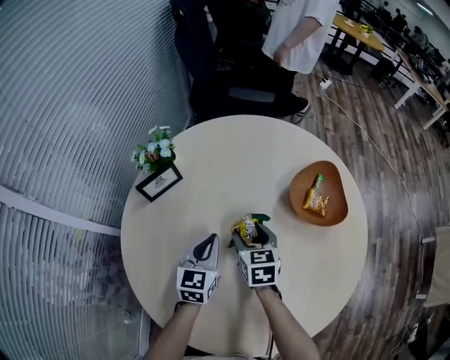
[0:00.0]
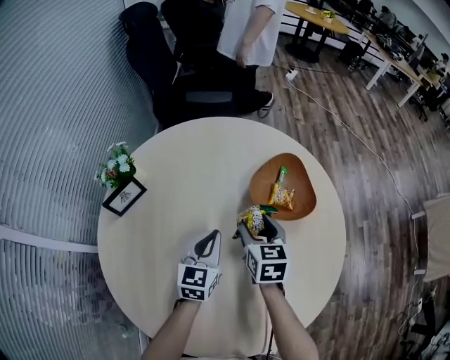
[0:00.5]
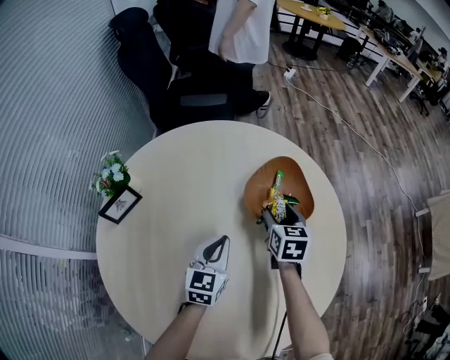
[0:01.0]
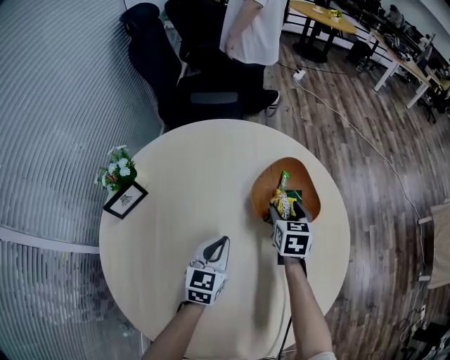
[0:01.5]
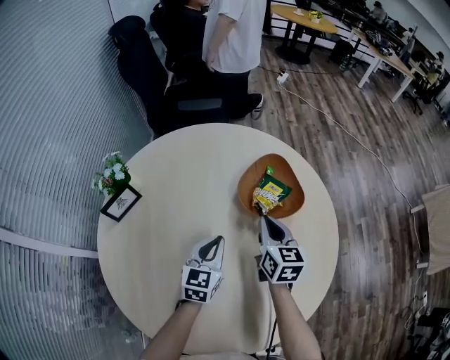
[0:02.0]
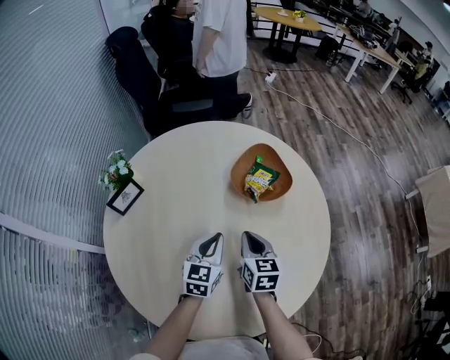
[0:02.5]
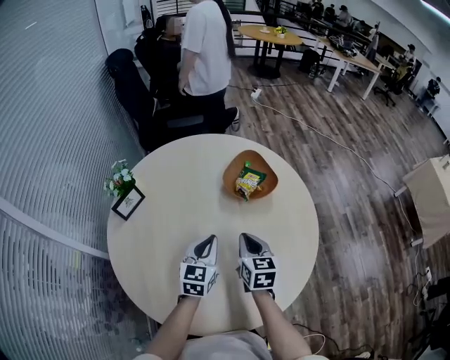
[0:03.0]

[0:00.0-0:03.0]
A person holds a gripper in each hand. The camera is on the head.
0:00.0 to 0:01.5: The right gripper travels to the right and forward by some 25 cm, and changes its angle by approximately 20 degrees. Meanwhile the left gripper goes roughly 15 cm to the right.
0:01.5 to 0:03.0: The right gripper travels backward and upward by roughly 25 cm, and closes up. The left gripper heads backward and upward, covering approximately 15 cm.

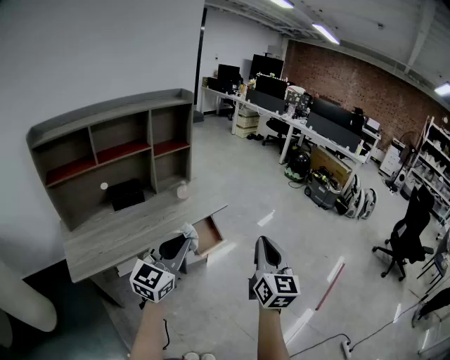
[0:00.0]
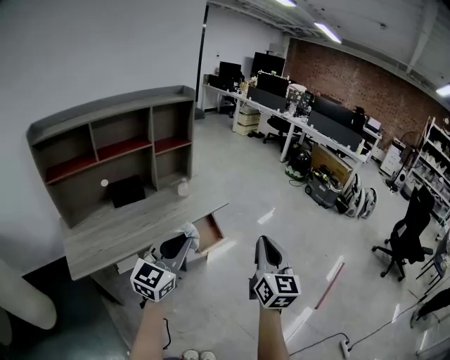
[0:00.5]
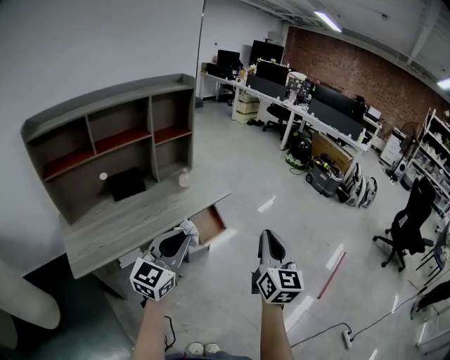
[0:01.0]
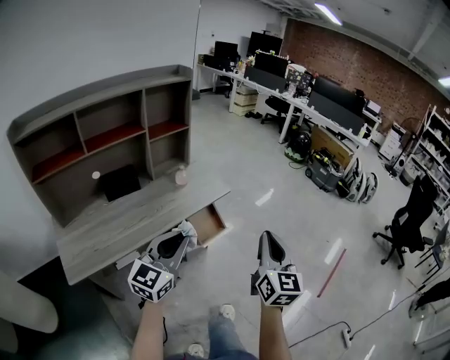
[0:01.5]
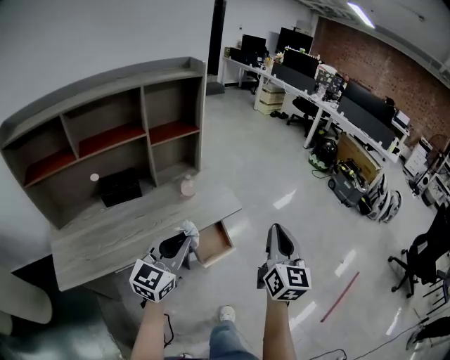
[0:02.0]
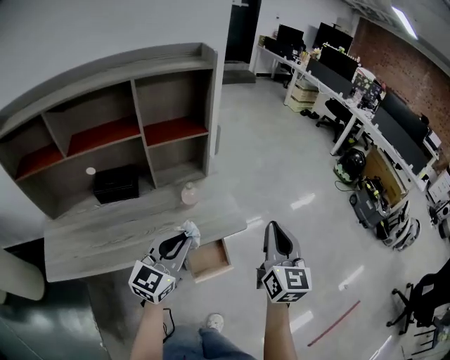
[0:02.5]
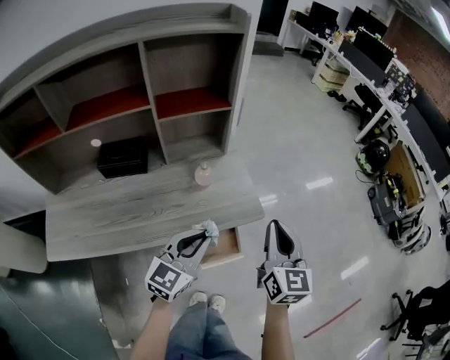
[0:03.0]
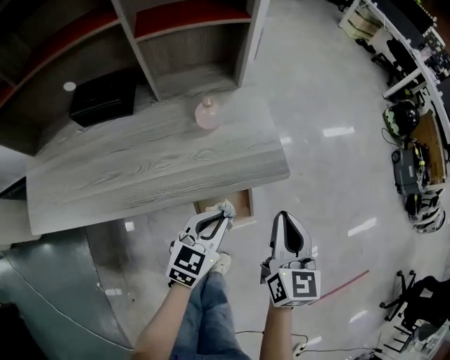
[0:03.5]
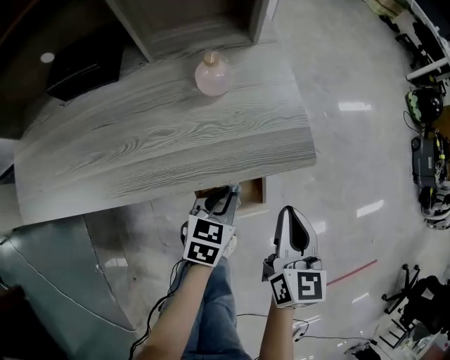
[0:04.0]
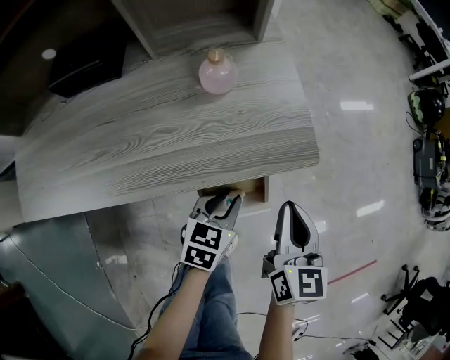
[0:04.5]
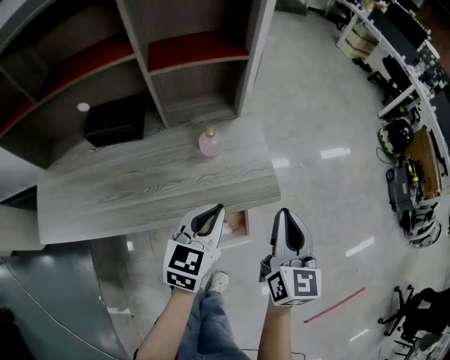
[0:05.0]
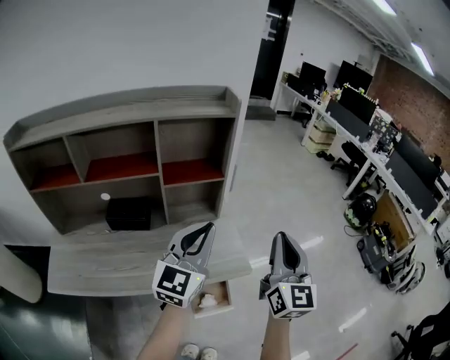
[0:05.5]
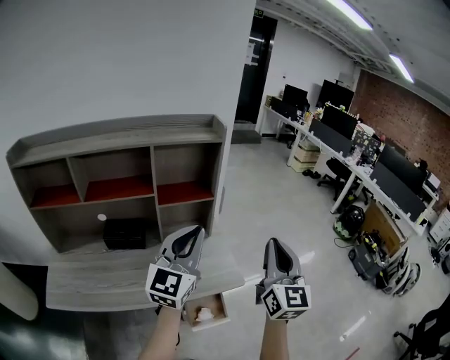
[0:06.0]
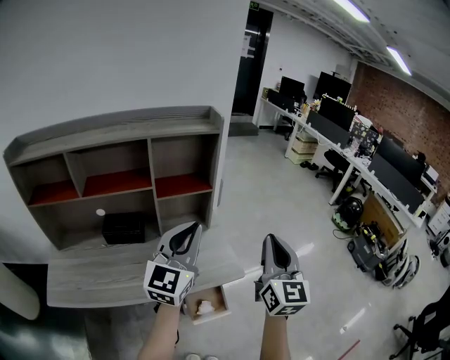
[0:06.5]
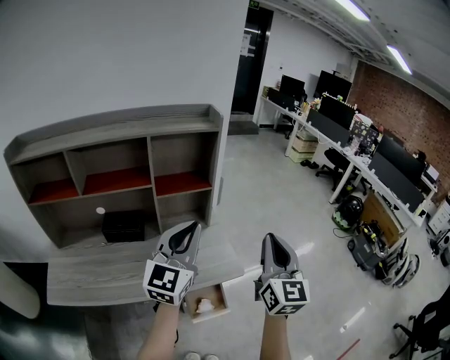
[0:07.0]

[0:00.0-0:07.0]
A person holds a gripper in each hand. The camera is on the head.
0:00.0 to 0:02.0: The right gripper shifts some 25 cm forward. The left gripper travels forward and downward by some 20 cm.
0:02.0 to 0:03.5: The two grippers go about 30 cm downward and forward. The left gripper swivels some 30 degrees. The right gripper rotates approximately 30 degrees.
0:03.5 to 0:05.0: The left gripper moves upward and forward, approximately 15 cm. The right gripper goes roughly 10 cm upward.
0:05.0 to 0:07.0: The two grippers go roughly 30 cm upward. The left gripper angles its fingers upward, by about 30 degrees. Meanwhile the right gripper turns by some 20 degrees.

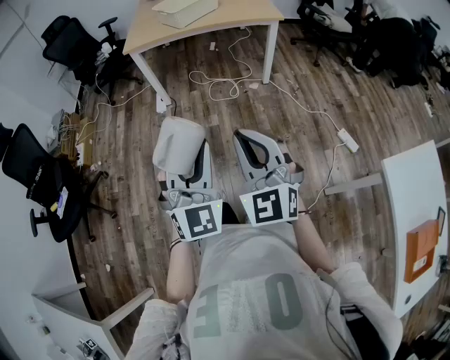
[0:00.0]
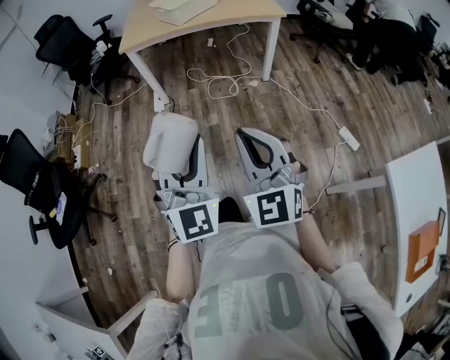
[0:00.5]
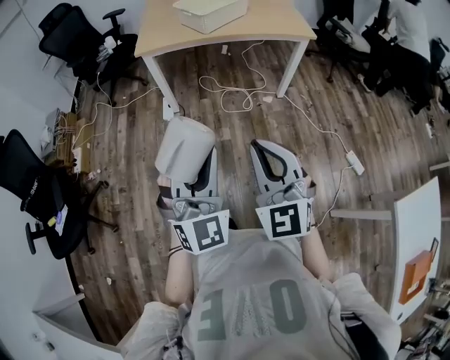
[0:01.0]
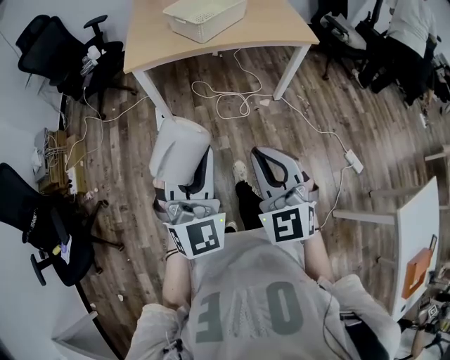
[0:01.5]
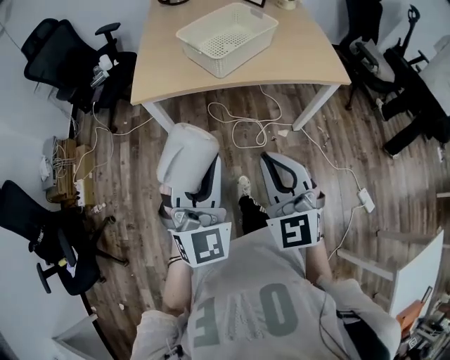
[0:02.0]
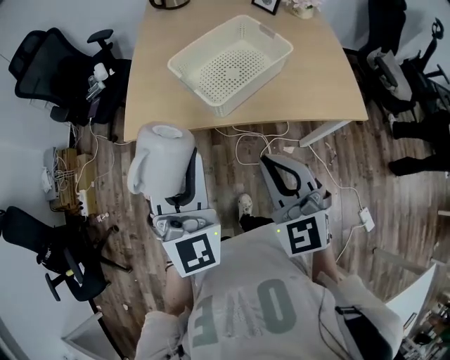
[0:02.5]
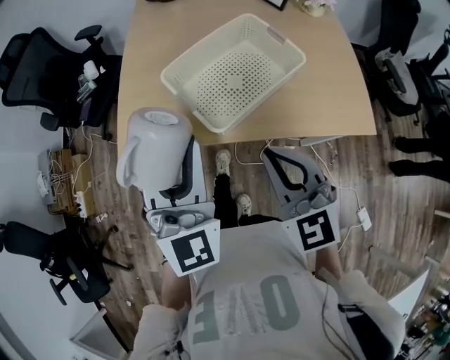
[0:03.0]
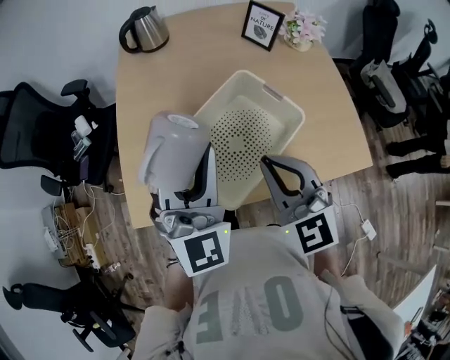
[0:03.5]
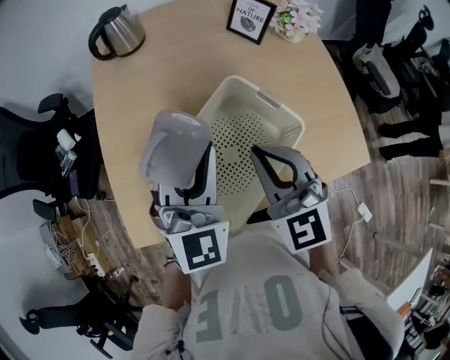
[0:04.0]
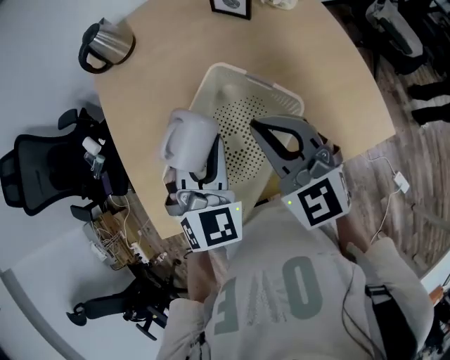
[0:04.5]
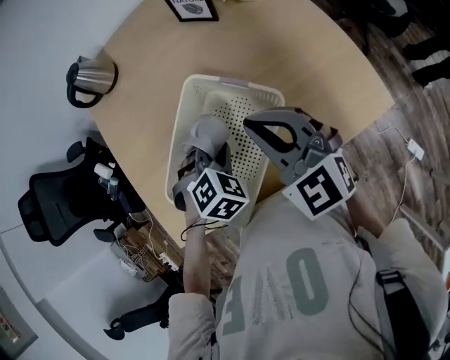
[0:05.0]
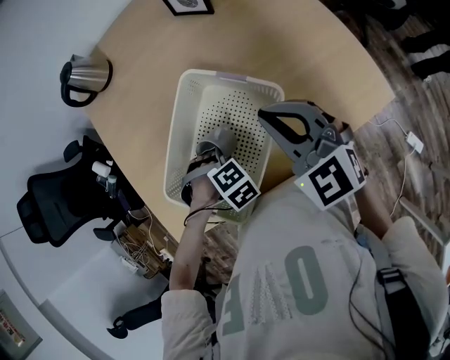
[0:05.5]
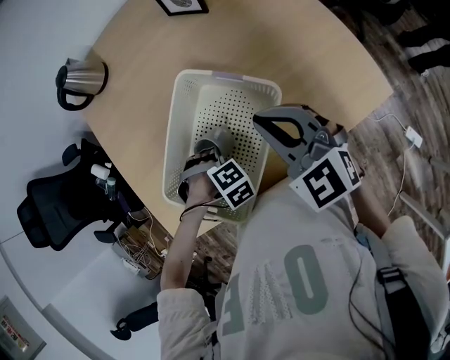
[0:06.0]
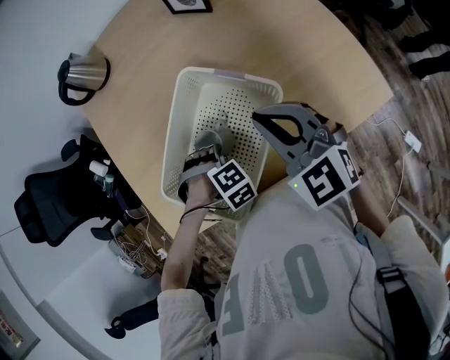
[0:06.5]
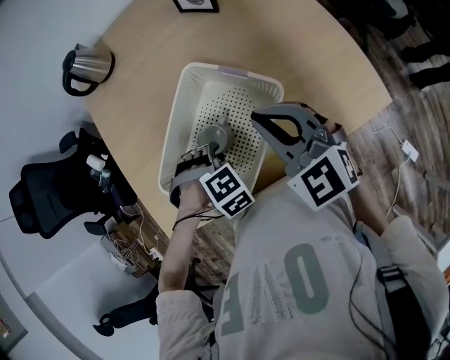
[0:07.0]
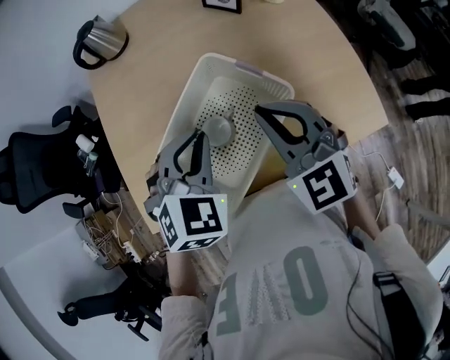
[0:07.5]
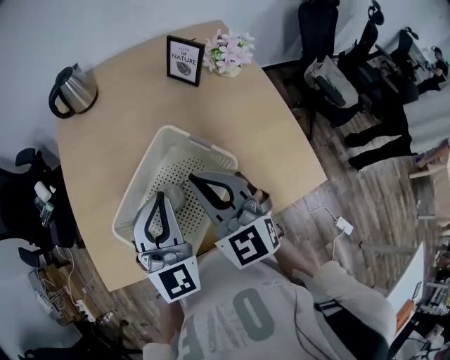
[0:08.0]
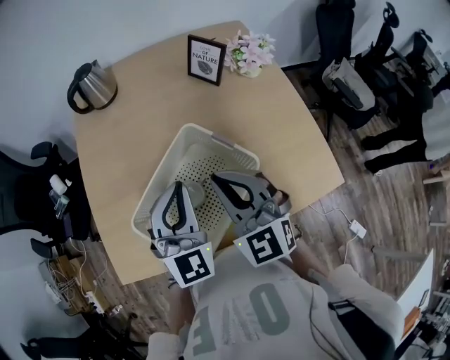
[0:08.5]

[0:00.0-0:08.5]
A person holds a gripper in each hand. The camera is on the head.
0:00.0 to 0:02.0: Both grippers are carried forward, approximately 50 cm.
0:02.0 to 0:04.0: The two grippers travel together, forward, some 60 cm.
0:04.0 to 0:06.5: The left gripper heads downward, covering roughly 30 cm, and points its fingers roughly 70 degrees further downward; the right gripper changes place by approximately 10 cm.
0:06.5 to 0:08.5: The right gripper goes about 5 cm upward, while the left gripper moves upward, some 25 cm, and points its fingers approximately 70 degrees further upward.

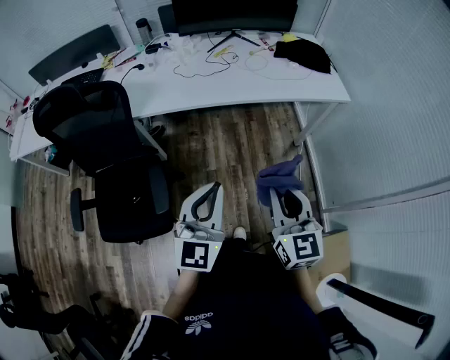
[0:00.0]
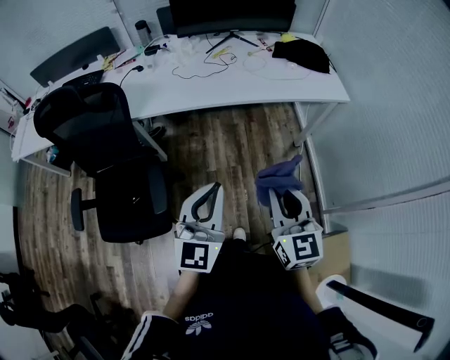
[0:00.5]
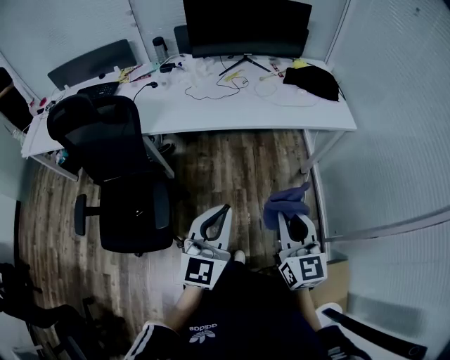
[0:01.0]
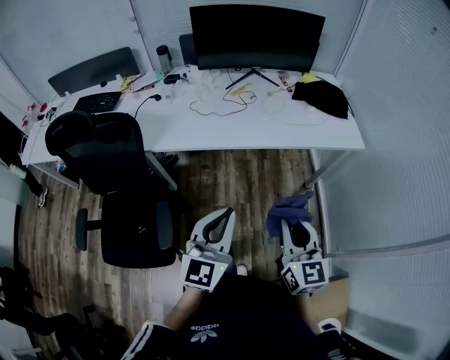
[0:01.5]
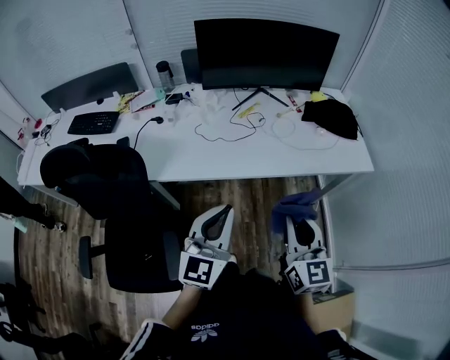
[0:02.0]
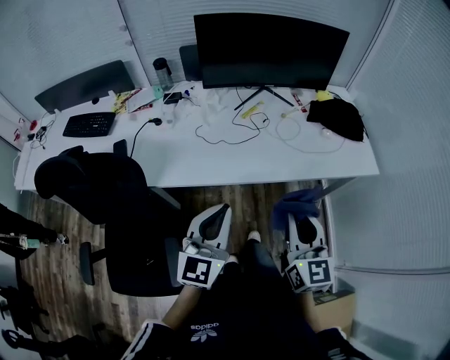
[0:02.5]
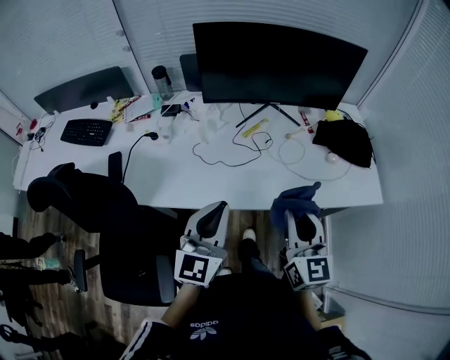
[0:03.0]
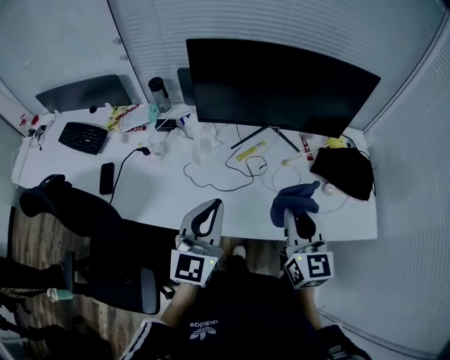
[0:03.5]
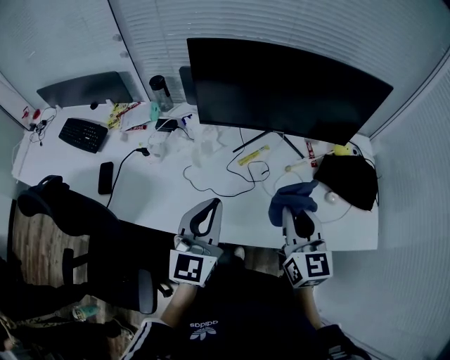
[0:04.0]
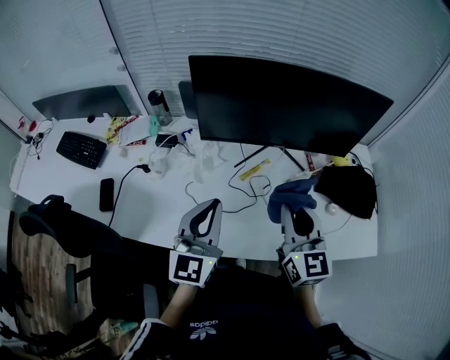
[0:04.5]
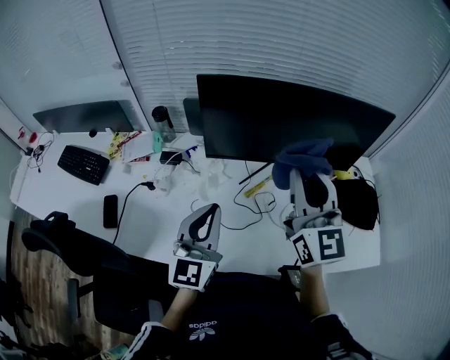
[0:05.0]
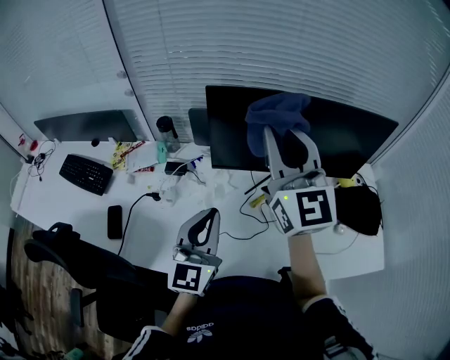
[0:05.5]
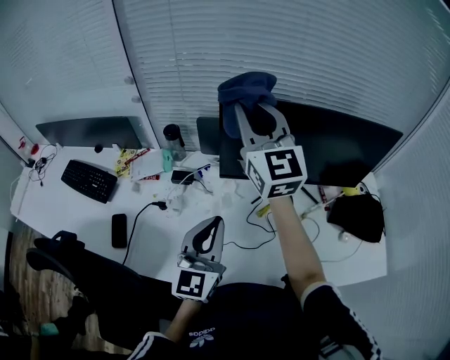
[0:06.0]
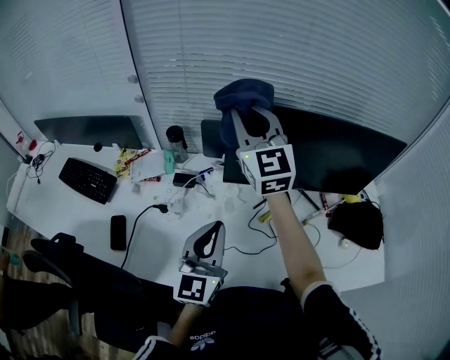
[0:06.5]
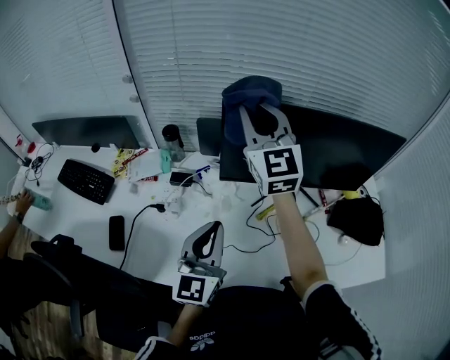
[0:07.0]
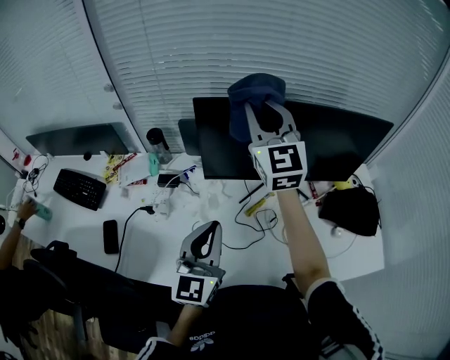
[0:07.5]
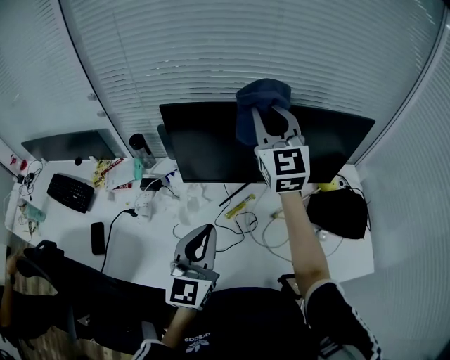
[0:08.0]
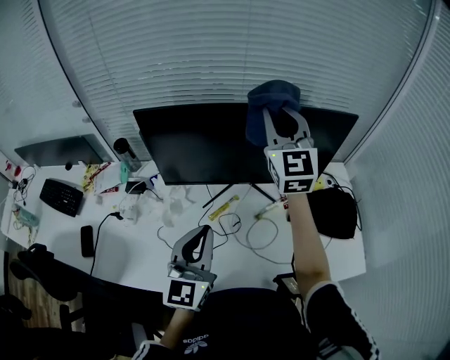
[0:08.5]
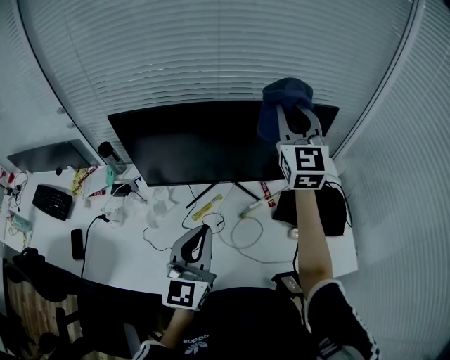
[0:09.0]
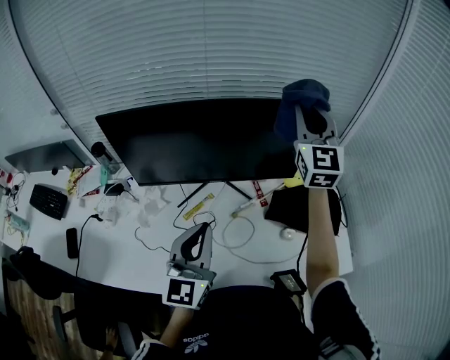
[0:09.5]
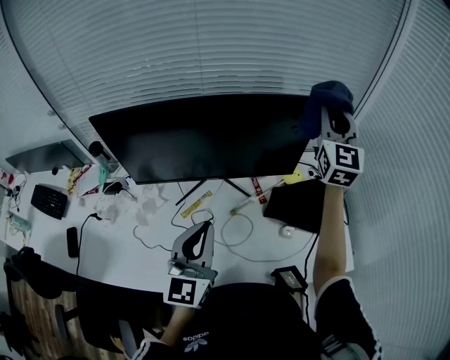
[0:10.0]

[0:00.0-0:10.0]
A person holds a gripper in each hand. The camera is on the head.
0:00.0 to 0:02.0: Both grippers travel together forward, about 20 cm.
0:02.0 to 0:04.0: Both grippers travel together forward, some 30 cm.
0:04.0 to 0:06.0: The left gripper is displaced forward and to the left by roughly 15 cm, while the right gripper goes some 40 cm forward, to the left and upward, and turns by about 30 degrees.
0:06.0 to 0:08.0: The right gripper goes roughly 20 cm to the right. Meanwhile the left gripper travels to the right by approximately 10 cm.
0:08.0 to 0:10.0: The left gripper shifts about 15 cm to the right. The right gripper travels to the right by about 35 cm, and turns by roughly 20 degrees.
